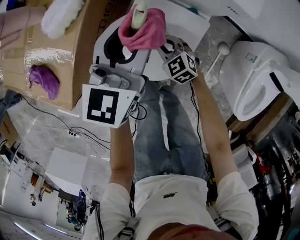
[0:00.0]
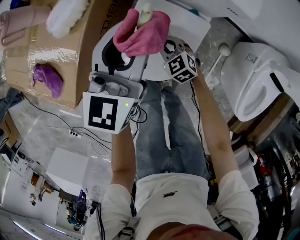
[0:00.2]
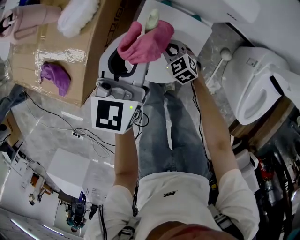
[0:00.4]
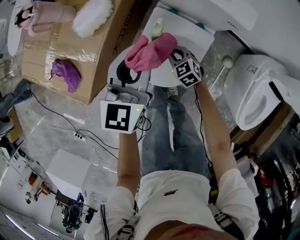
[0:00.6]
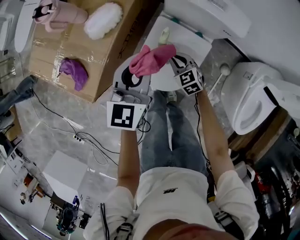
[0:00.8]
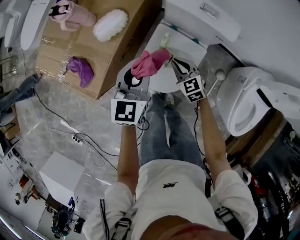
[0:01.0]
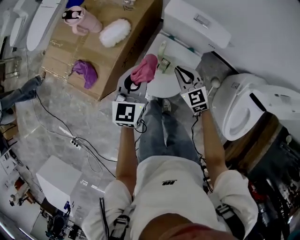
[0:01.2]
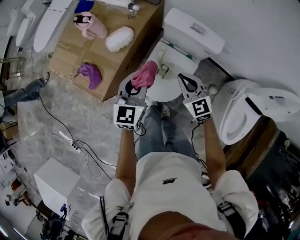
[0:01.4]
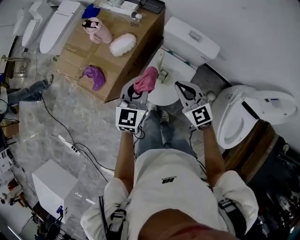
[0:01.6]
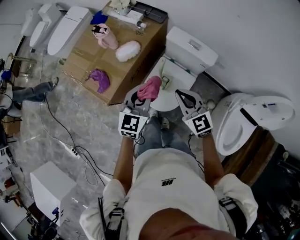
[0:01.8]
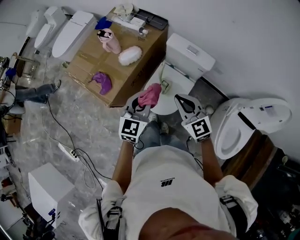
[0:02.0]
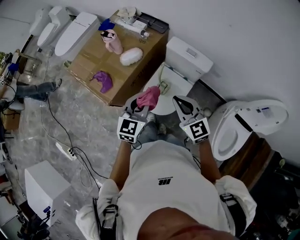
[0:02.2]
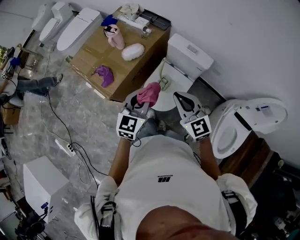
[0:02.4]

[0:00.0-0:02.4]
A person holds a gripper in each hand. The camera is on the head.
0:00.0 to 0:01.2: The left gripper is displaced upward, to the left and backward by approximately 15 cm, and closes up. The right gripper is displaced upward by some 25 cm.
0:01.2 to 0:02.4: Both grippers travel together upward and backward, roughly 30 cm. The right gripper turns by roughly 20 degrees.

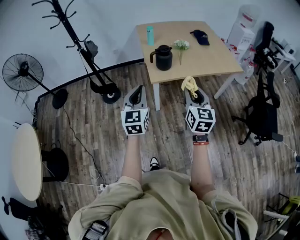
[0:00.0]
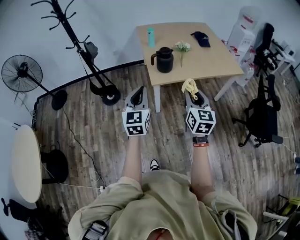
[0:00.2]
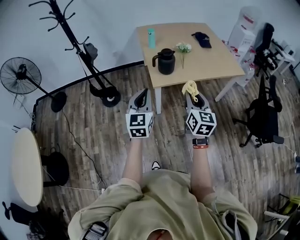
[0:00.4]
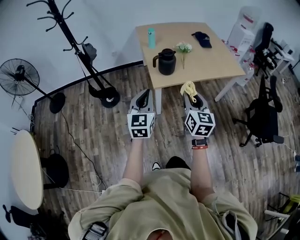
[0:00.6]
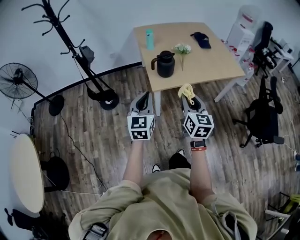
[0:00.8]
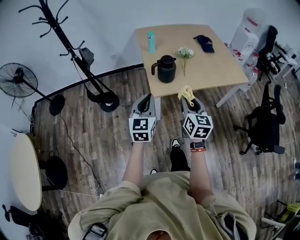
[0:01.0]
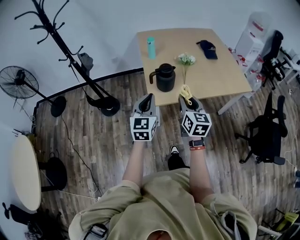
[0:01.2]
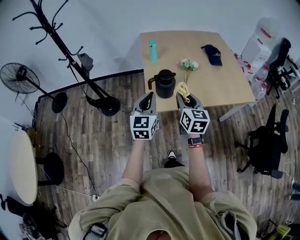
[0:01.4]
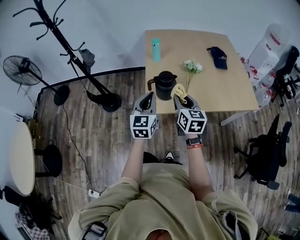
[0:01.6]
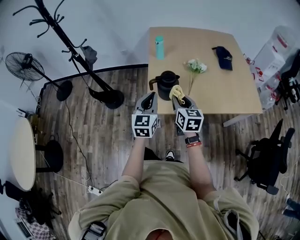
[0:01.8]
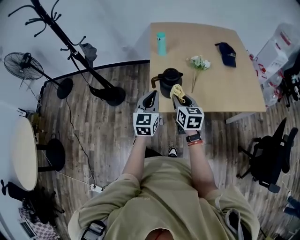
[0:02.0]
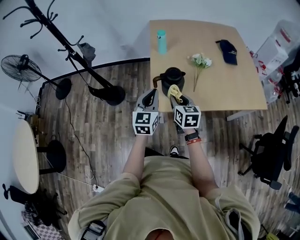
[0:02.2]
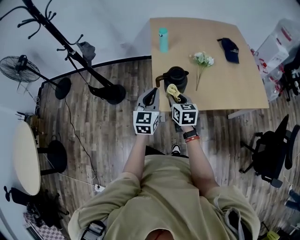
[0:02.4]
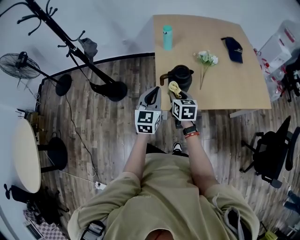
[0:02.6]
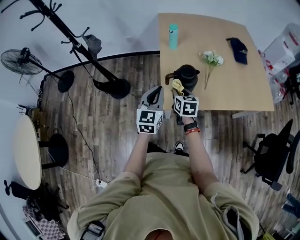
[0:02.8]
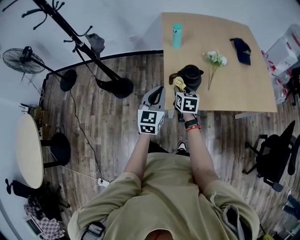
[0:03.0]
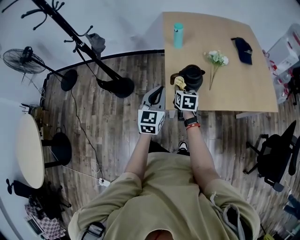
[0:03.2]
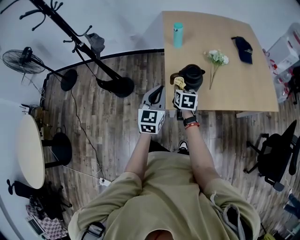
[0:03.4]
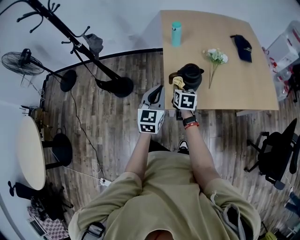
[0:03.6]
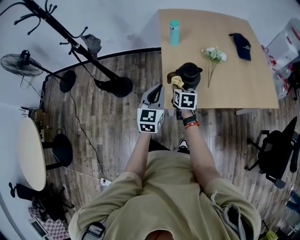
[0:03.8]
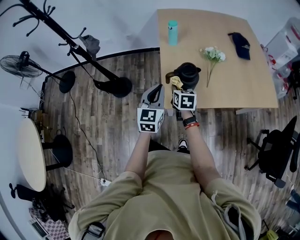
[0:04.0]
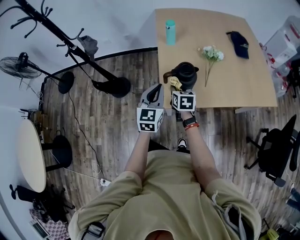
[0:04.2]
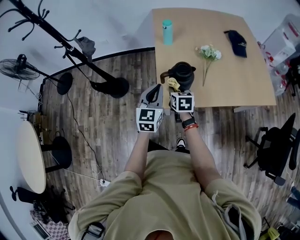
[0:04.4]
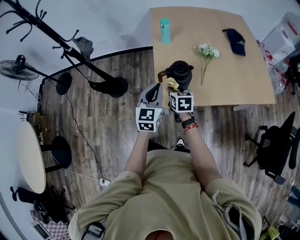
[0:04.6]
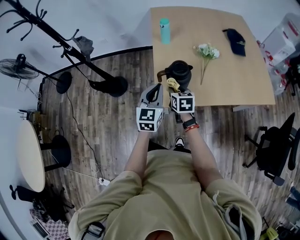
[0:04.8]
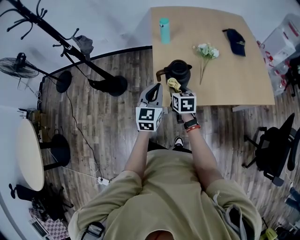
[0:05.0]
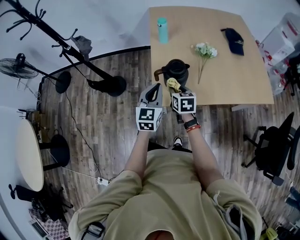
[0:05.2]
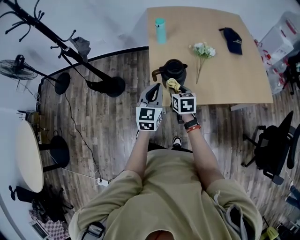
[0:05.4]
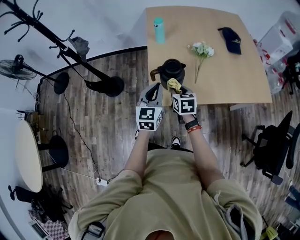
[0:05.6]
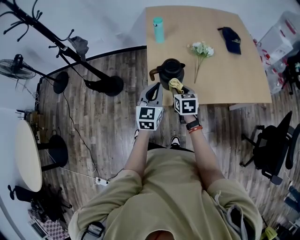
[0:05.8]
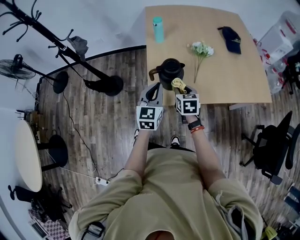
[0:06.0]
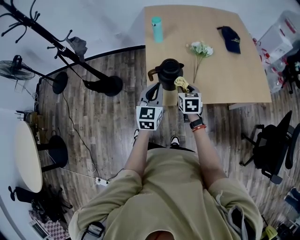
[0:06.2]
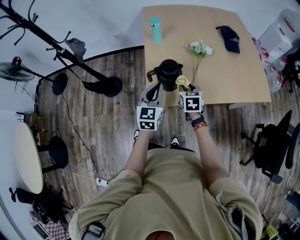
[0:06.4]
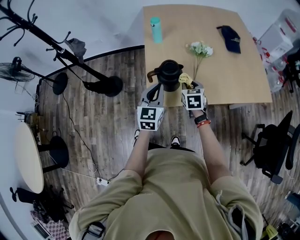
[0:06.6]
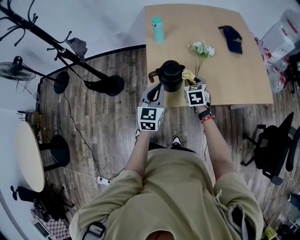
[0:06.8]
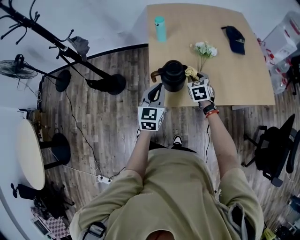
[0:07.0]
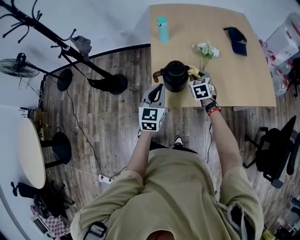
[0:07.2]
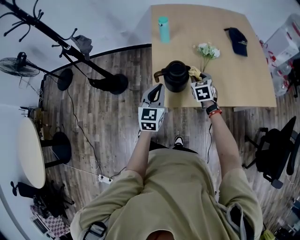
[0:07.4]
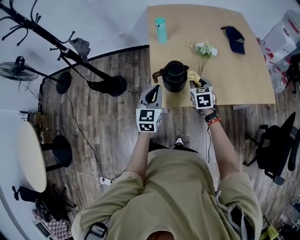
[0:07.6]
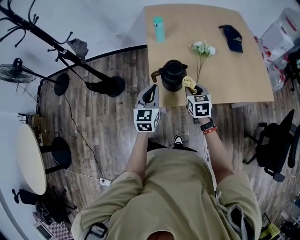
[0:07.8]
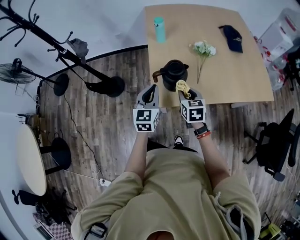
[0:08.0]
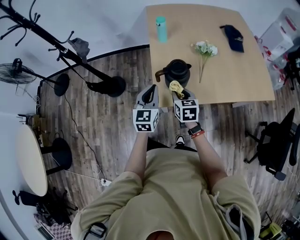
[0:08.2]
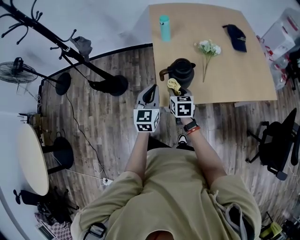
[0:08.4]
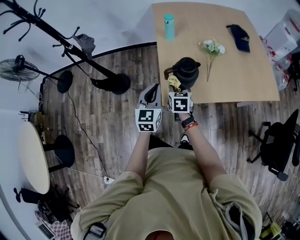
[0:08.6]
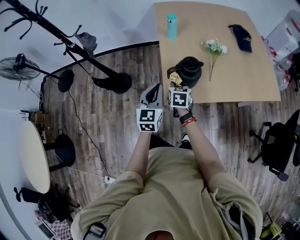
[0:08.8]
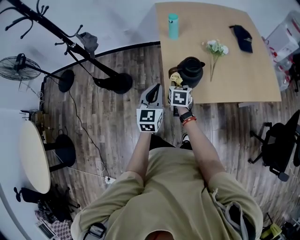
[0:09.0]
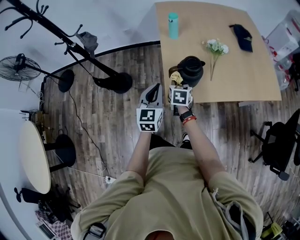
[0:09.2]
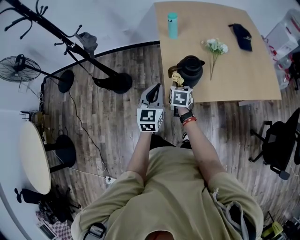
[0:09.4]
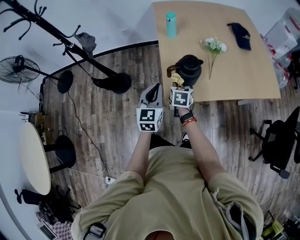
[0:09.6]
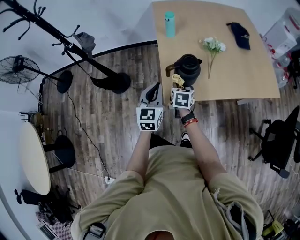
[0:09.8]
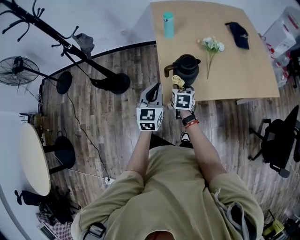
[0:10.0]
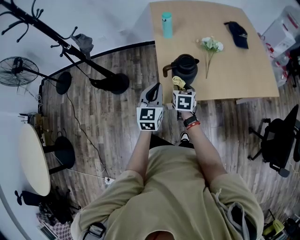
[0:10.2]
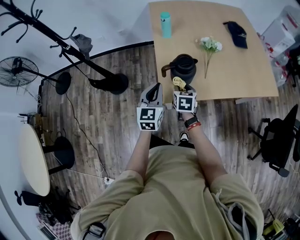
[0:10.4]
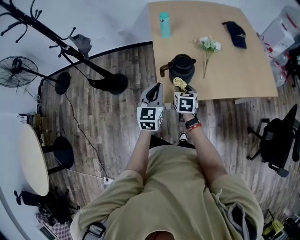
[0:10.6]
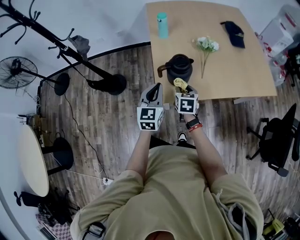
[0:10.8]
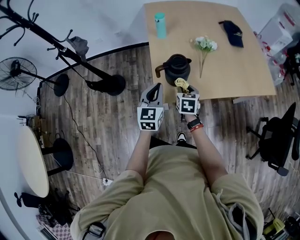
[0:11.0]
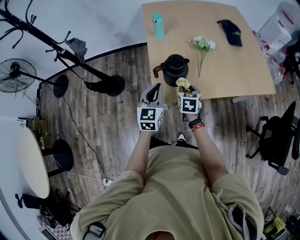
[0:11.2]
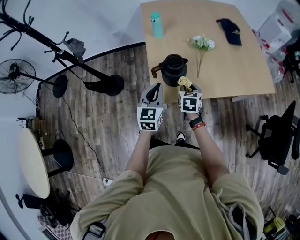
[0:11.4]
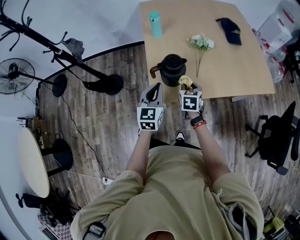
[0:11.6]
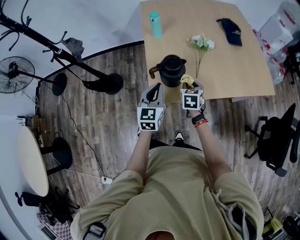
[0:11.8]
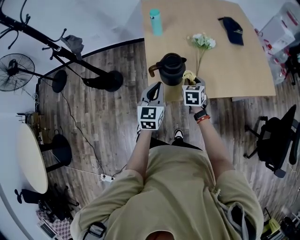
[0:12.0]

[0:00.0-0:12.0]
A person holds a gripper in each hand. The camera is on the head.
0:00.0 to 0:01.6: Both grippers travel together forward, some 35 cm. The right gripper swivels roughly 20 degrees.
0:01.6 to 0:03.0: The left gripper is displaced to the left, forward and downward by about 15 cm, while the right gripper is displaced downward, forward and to the left by about 25 cm.
0:03.0 to 0:04.4: There are only small adjustments of the grippers.
0:04.4 to 0:06.0: The left gripper is displaced to the right by some 5 cm; the right gripper is displaced to the right by approximately 10 cm.
0:06.0 to 0:07.6: The right gripper travels forward and to the right by roughly 10 cm.
0:07.6 to 0:09.0: The left gripper goes about 10 cm to the left; the right gripper goes roughly 20 cm to the left.
0:09.0 to 0:10.4: The right gripper is displaced to the right by some 5 cm.
0:10.4 to 0:12.0: The left gripper moves to the right, approximately 5 cm. The right gripper heads to the right and forward, covering some 15 cm.

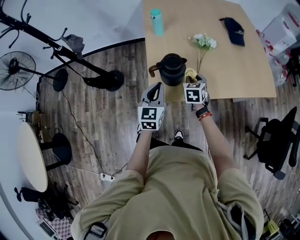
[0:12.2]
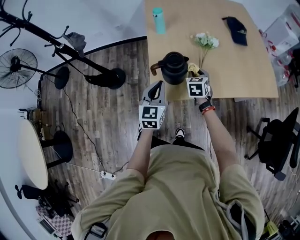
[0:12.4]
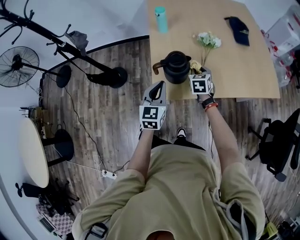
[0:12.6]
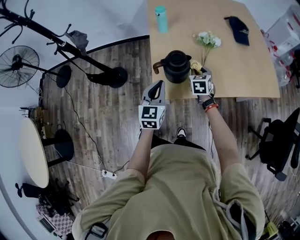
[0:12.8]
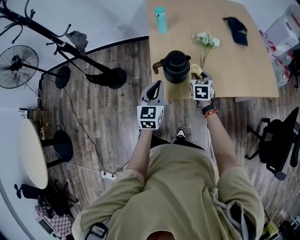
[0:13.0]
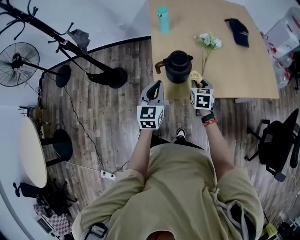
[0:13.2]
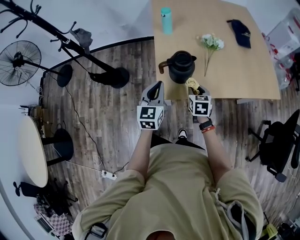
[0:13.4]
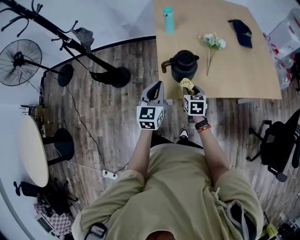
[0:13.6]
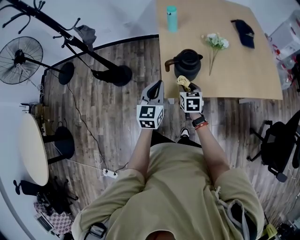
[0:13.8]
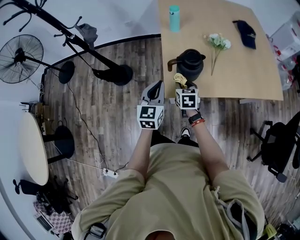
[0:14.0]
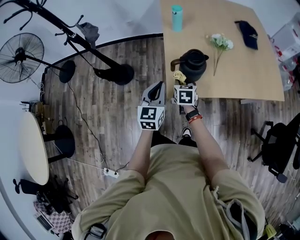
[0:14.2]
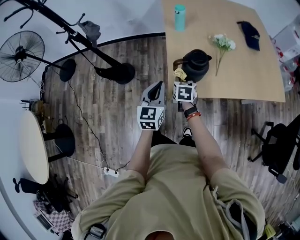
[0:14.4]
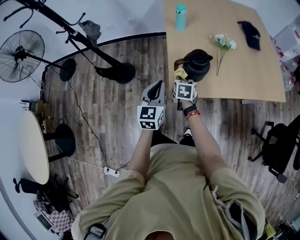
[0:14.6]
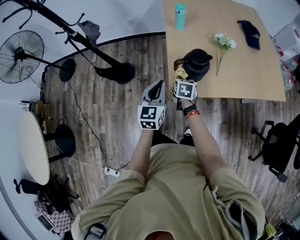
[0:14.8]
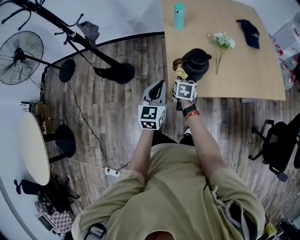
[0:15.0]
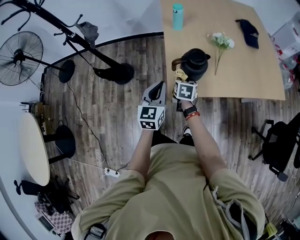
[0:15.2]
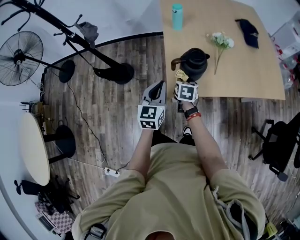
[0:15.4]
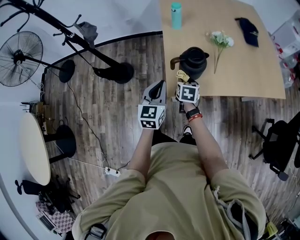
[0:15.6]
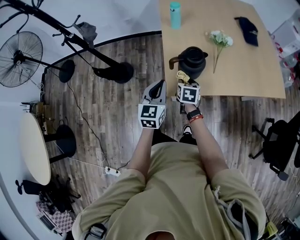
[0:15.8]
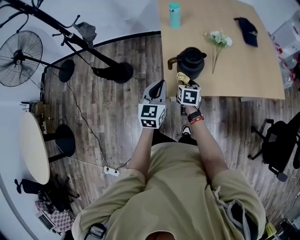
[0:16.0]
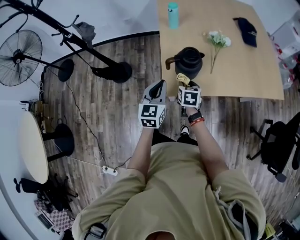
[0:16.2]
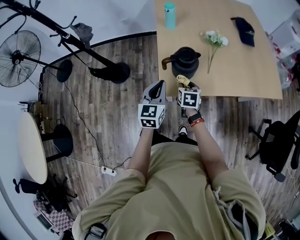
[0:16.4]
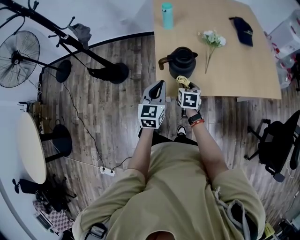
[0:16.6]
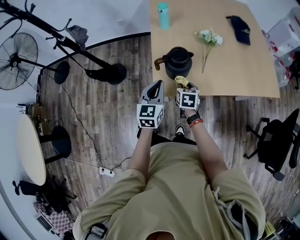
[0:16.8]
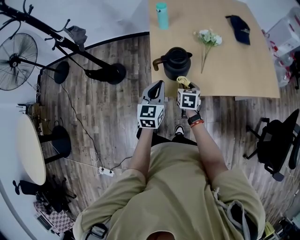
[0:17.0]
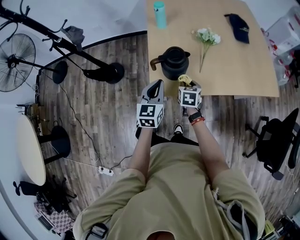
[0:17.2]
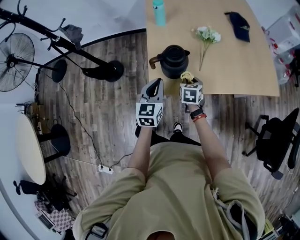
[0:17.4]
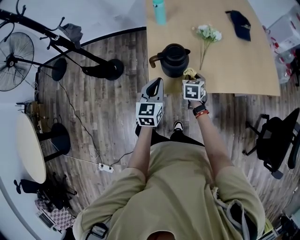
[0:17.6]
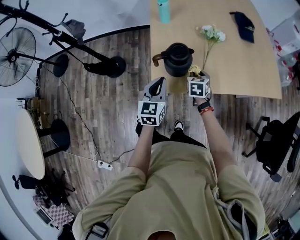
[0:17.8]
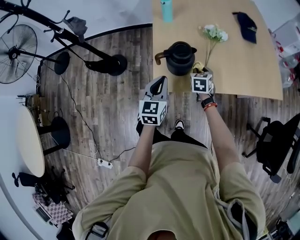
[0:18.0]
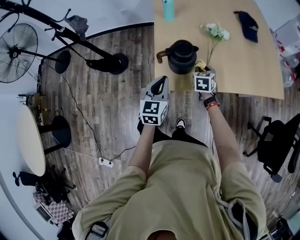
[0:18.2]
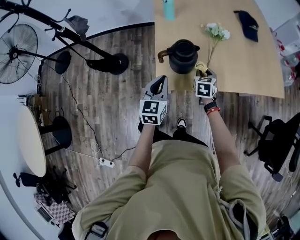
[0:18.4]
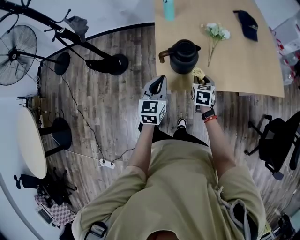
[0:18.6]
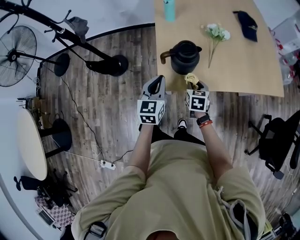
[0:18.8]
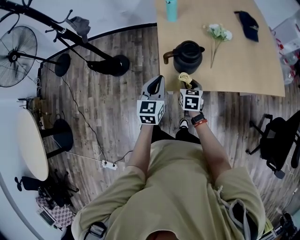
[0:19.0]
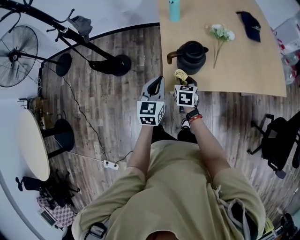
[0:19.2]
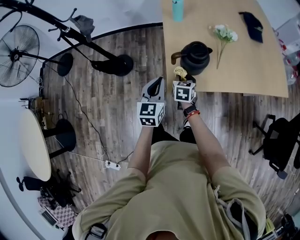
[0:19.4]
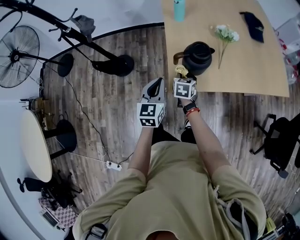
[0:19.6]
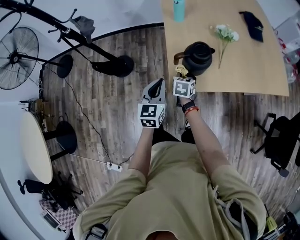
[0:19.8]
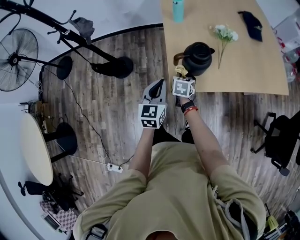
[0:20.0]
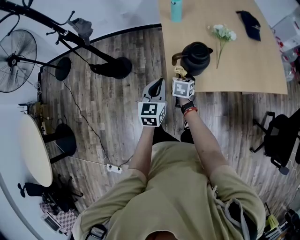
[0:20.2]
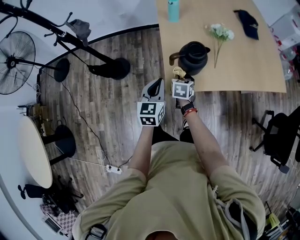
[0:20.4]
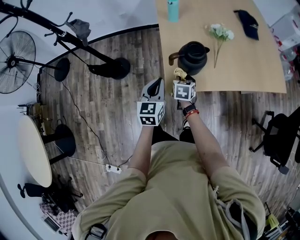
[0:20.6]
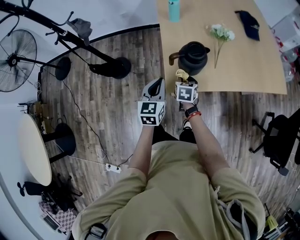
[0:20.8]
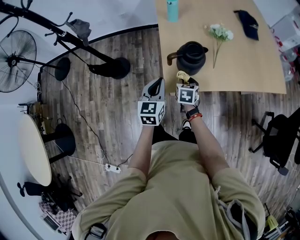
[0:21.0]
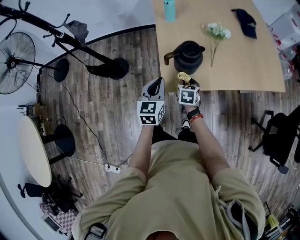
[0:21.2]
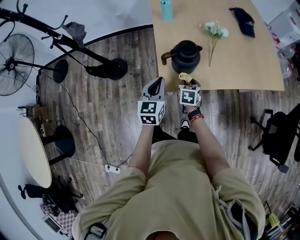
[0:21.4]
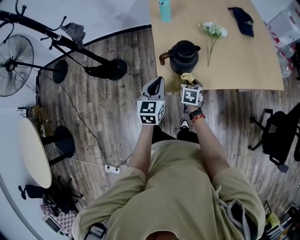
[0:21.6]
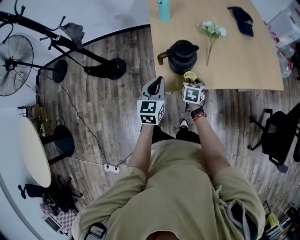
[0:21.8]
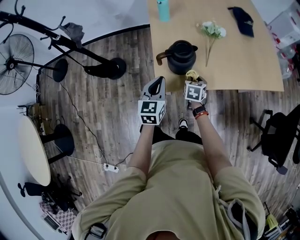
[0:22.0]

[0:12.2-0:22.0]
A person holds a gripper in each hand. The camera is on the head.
0:12.2 to 0:13.6: The right gripper moves backward and to the left, approximately 10 cm, while the left gripper heads to the left, covering some 5 cm.
0:13.6 to 0:15.0: The right gripper shifts roughly 10 cm to the left and forward. Meanwhile the left gripper shifts roughly 5 cm to the left.
0:15.0 to 0:16.4: Both grippers move to the right, approximately 5 cm.
0:16.4 to 0:17.8: The left gripper shifts by some 5 cm. The right gripper goes some 10 cm to the right and forward.
0:17.8 to 0:19.2: The right gripper goes some 15 cm to the left and backward, while the left gripper shifts approximately 10 cm to the left.
0:19.2 to 0:20.6: The grippers make only small movements.
0:20.6 to 0:22.0: The right gripper moves to the right, some 15 cm. Meanwhile the left gripper goes about 5 cm to the right.
